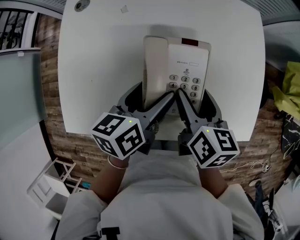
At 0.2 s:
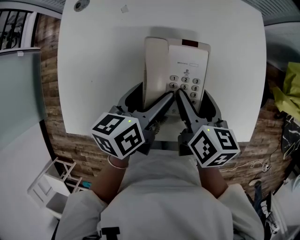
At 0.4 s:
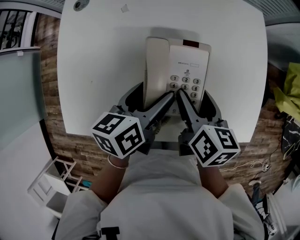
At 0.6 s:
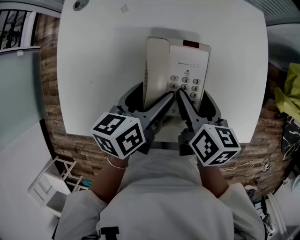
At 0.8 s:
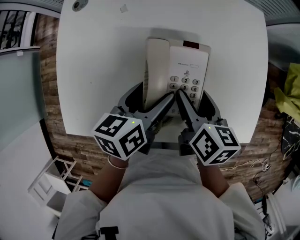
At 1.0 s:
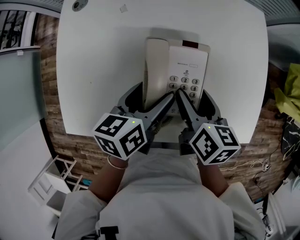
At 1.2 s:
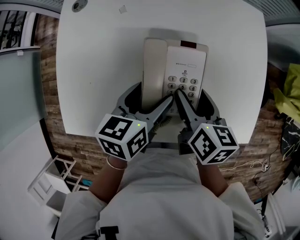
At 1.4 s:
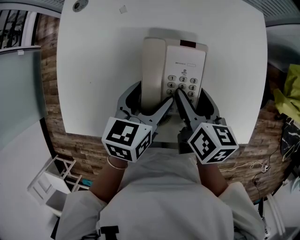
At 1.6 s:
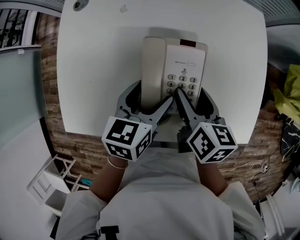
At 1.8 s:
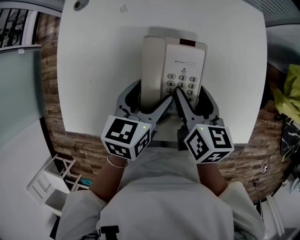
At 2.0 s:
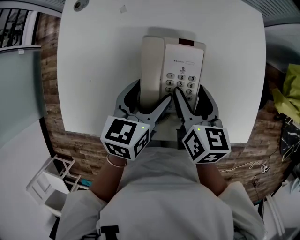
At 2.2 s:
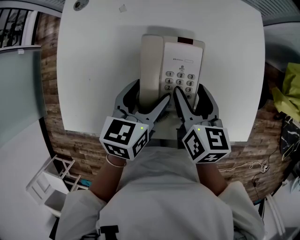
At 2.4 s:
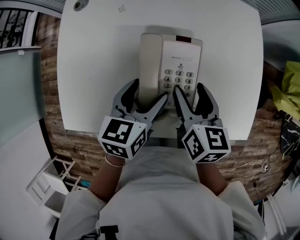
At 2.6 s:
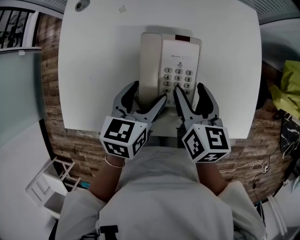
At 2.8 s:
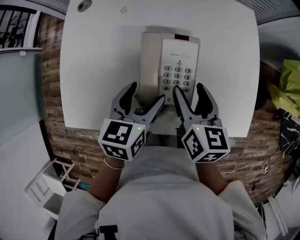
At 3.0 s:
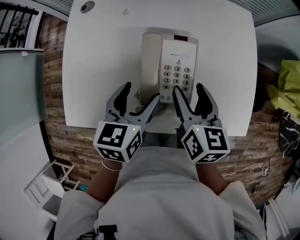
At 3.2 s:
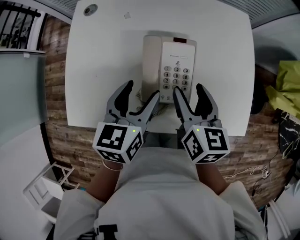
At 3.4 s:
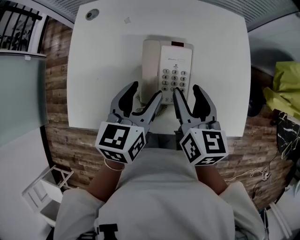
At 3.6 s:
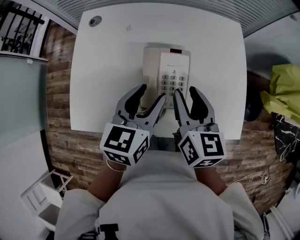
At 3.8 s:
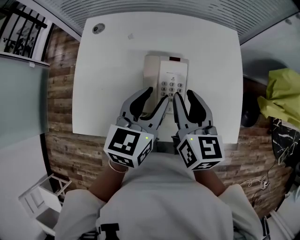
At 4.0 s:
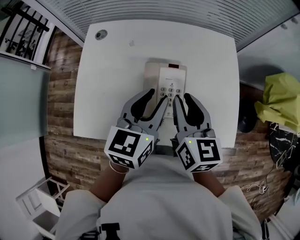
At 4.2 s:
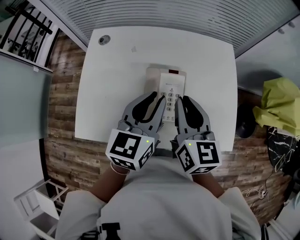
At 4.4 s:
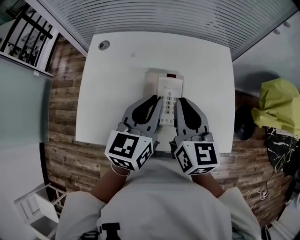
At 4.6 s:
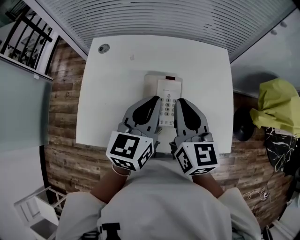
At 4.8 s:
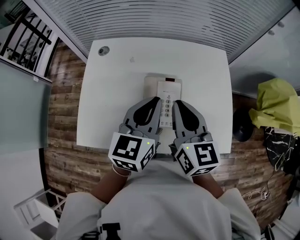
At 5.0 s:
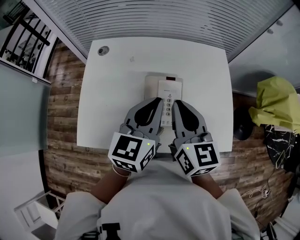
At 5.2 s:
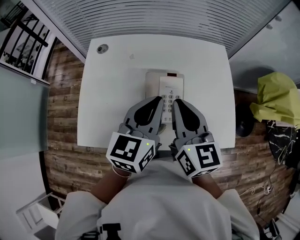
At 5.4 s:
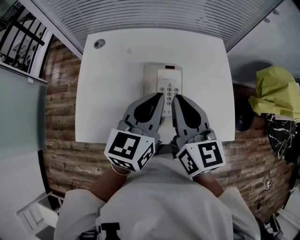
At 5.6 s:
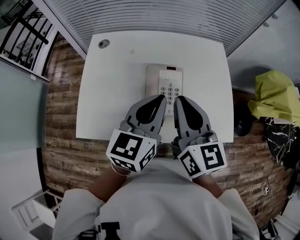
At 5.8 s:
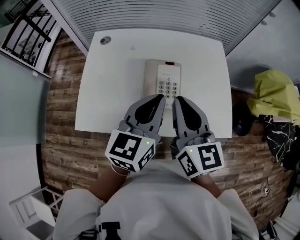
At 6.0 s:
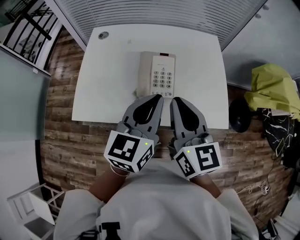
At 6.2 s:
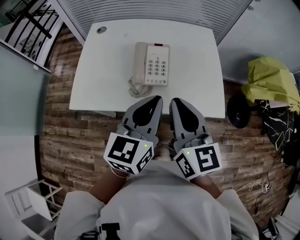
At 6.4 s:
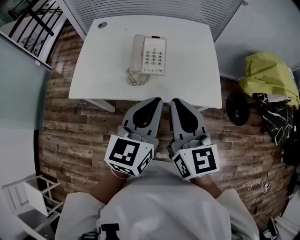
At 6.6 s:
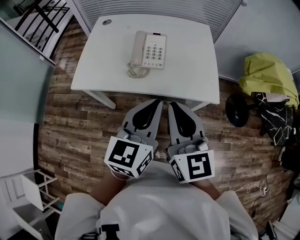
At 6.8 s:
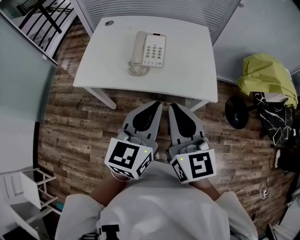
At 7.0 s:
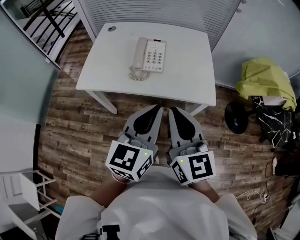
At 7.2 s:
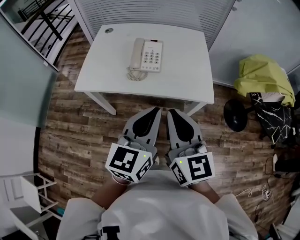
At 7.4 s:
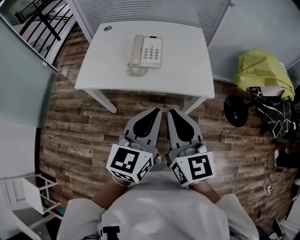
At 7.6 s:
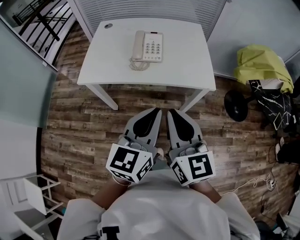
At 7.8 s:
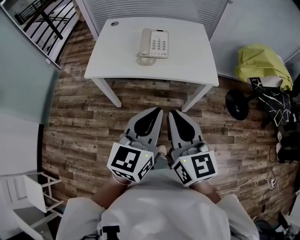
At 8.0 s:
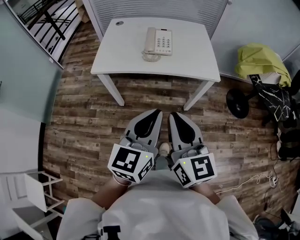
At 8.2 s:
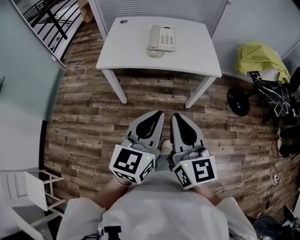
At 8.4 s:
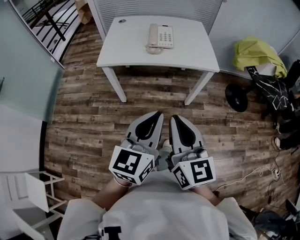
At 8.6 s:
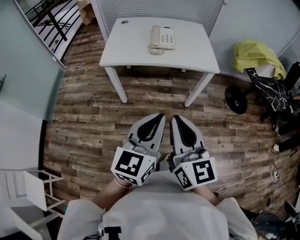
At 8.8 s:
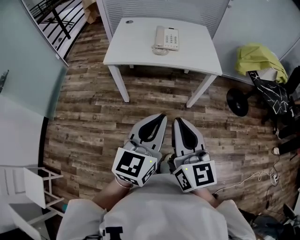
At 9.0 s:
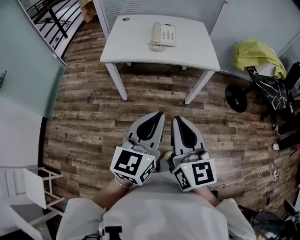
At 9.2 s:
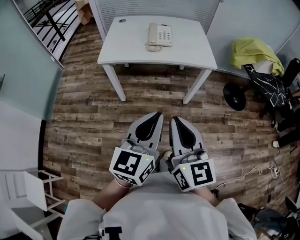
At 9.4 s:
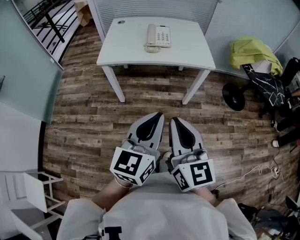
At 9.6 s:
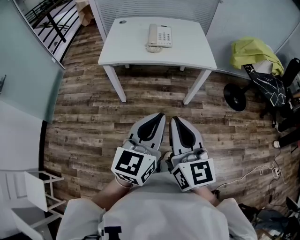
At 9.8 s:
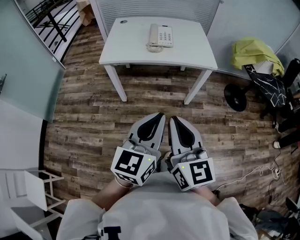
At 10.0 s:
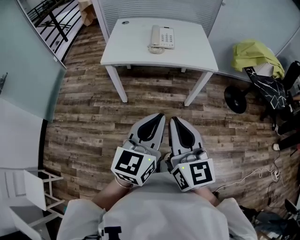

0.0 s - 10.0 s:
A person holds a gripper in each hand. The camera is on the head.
0.0 s - 1.4 s: The grippers stay close to where they were, moving slightly.
1.4 s - 2.8 s: There are only small adjustments of the grippers.
2.8 s - 4.2 s: The two grippers go approximately 15 cm upward. The right gripper closes, while the left gripper changes its angle by about 20 degrees, and closes.
4.2 s - 5.8 s: The left gripper moves backward, about 5 cm; the right gripper shifts roughly 10 cm backward and upward.
5.8 s - 7.2 s: Both grippers travel together backward, roughly 25 cm.
7.2 s - 8.6 s: The two grippers go about 25 cm backward.
8.6 s - 10.0 s: There are only small adjustments of the grippers.

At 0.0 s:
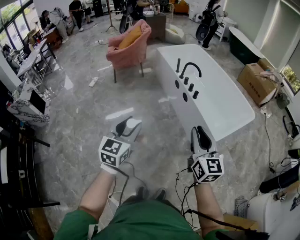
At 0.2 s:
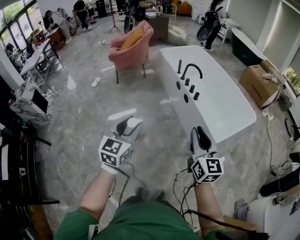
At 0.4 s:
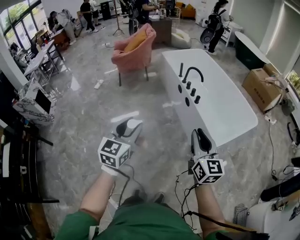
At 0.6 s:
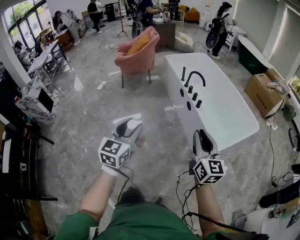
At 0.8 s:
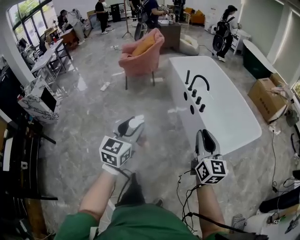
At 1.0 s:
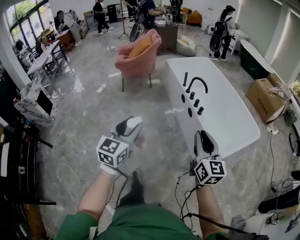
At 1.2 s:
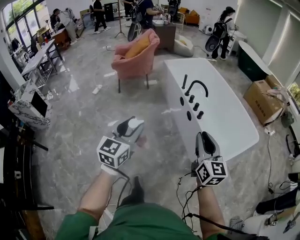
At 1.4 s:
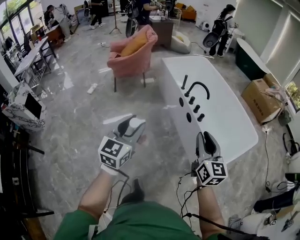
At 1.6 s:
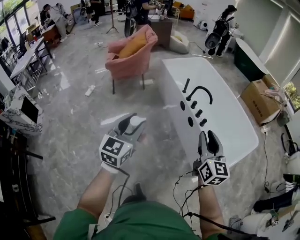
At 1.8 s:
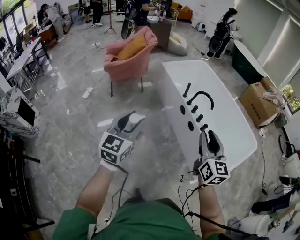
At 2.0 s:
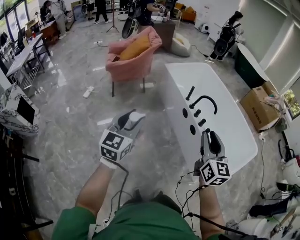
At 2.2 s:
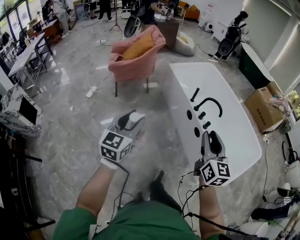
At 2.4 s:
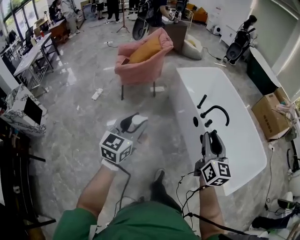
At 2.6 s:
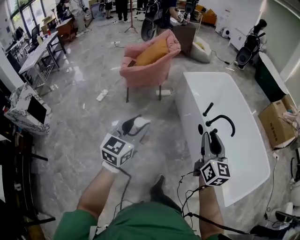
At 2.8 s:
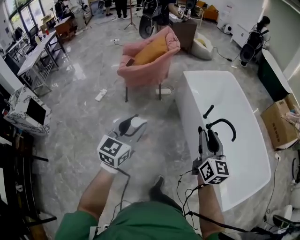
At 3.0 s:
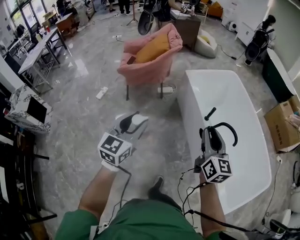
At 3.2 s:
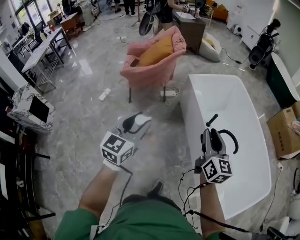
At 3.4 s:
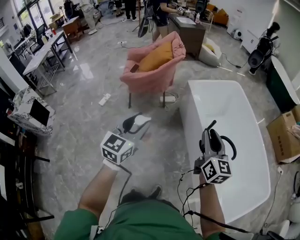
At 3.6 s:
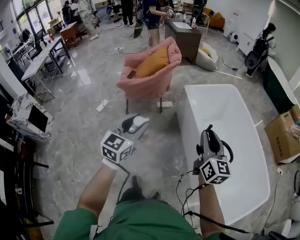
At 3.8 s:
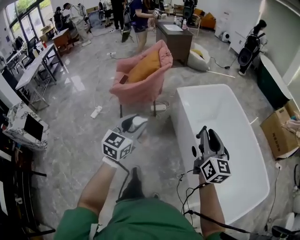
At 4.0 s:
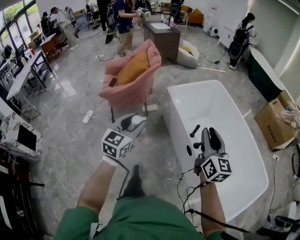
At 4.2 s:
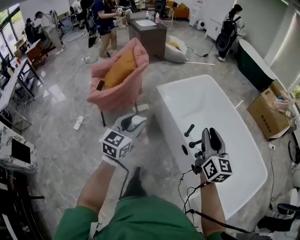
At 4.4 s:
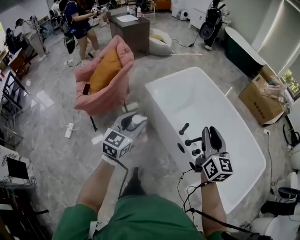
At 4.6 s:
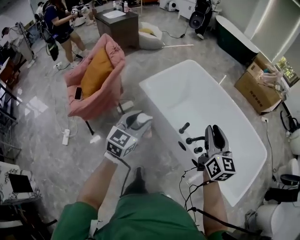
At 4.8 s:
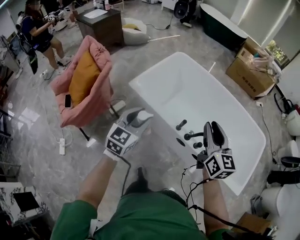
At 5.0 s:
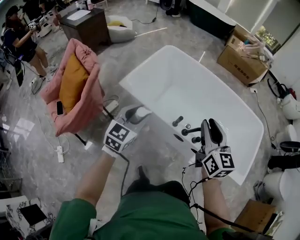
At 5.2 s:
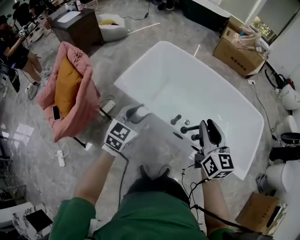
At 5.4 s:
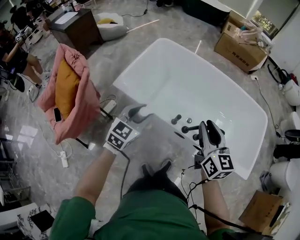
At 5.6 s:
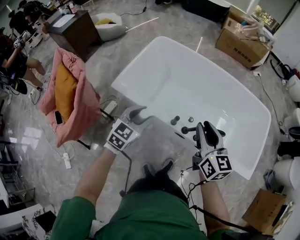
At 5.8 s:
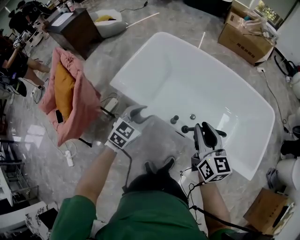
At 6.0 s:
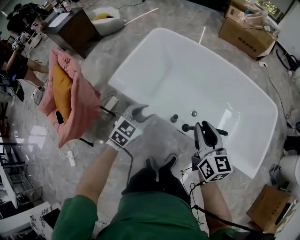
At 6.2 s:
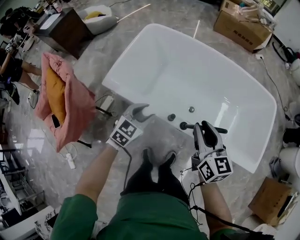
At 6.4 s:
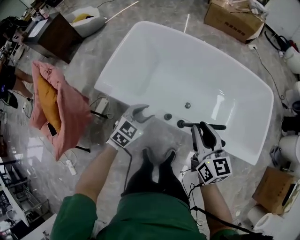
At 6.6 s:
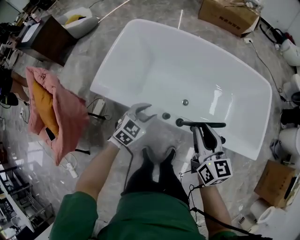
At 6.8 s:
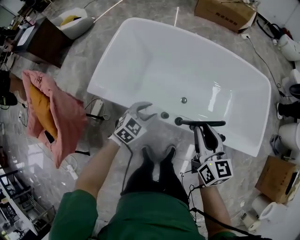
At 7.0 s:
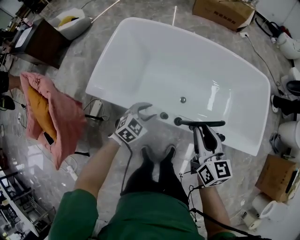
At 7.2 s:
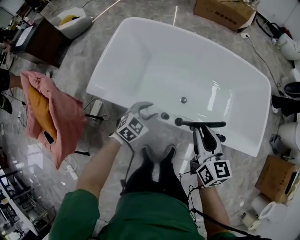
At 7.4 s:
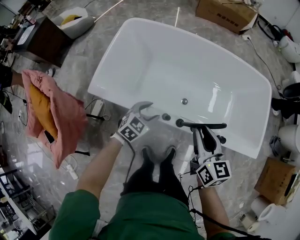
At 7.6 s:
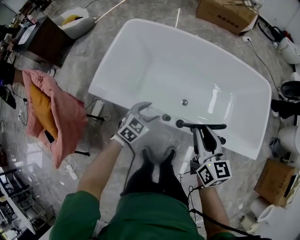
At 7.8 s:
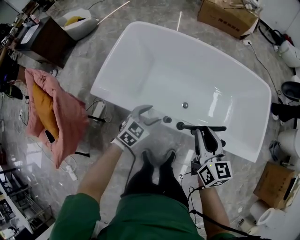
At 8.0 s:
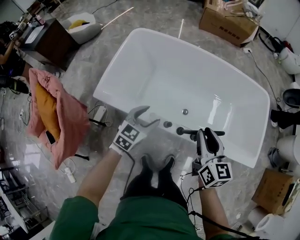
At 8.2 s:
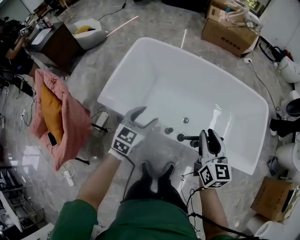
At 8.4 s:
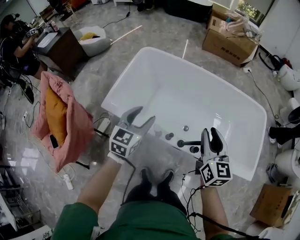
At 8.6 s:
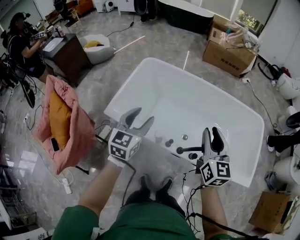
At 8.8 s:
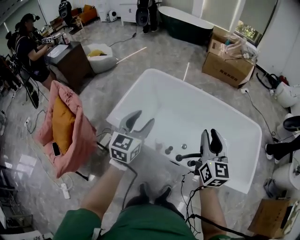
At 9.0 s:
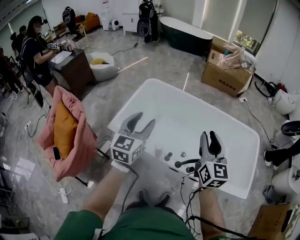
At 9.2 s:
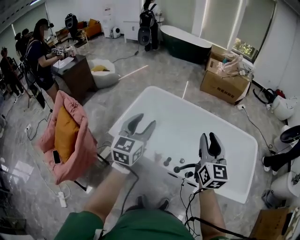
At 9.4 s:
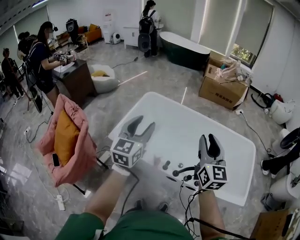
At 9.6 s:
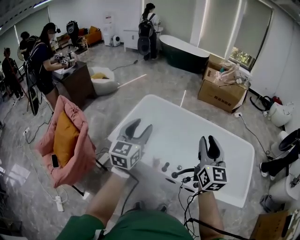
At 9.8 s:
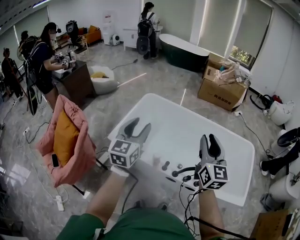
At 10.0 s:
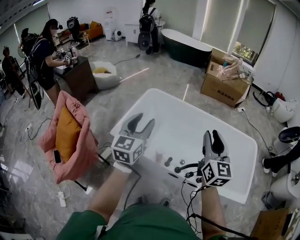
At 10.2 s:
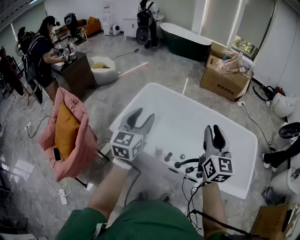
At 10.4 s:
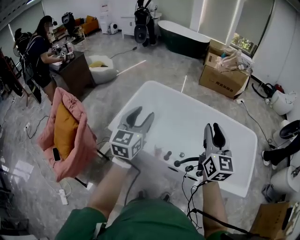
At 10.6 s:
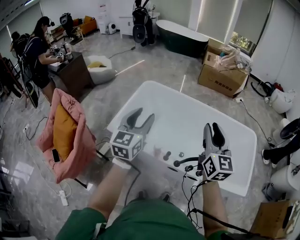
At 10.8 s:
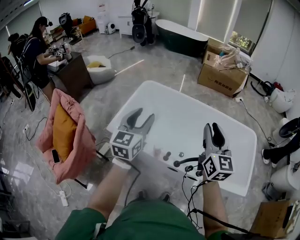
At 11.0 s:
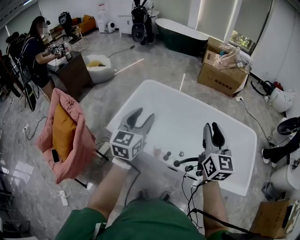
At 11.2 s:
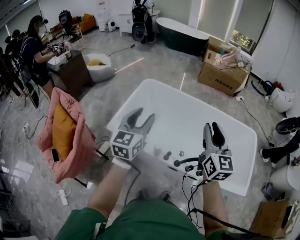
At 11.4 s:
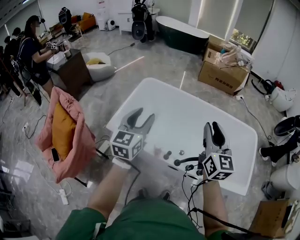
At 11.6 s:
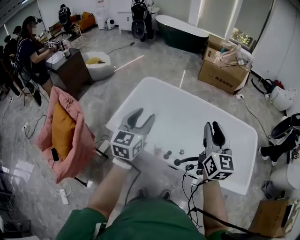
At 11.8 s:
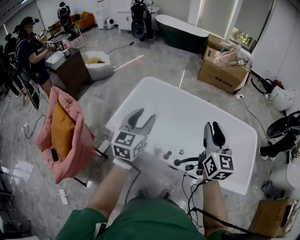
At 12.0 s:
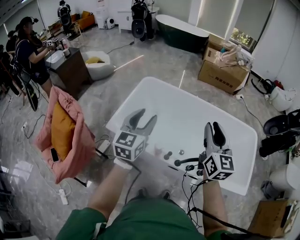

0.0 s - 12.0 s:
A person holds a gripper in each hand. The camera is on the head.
0.0 s - 1.6 s: Both grippers travel together forward, approximately 30 cm.
1.6 s - 3.0 s: Both grippers are carried forward, about 50 cm.
3.0 s - 4.4 s: The grippers both shift forward by roughly 30 cm. The left gripper turns by approximately 20 degrees.
4.4 s - 6.0 s: The right gripper changes place by some 25 cm, and swivels some 20 degrees. Meanwhile the left gripper shifts by about 40 cm, and changes its angle by roughly 40 degrees.
6.0 s - 7.6 s: The right gripper shifts roughly 5 cm downward. Meanwhile the left gripper travels downward and forward by roughly 15 cm, and opens.
7.6 s - 9.0 s: The right gripper shifts roughly 25 cm upward, and turns by about 20 degrees; the left gripper heads upward, covering some 40 cm, and tilts its fingers roughly 30 degrees upward.
9.0 s - 10.4 s: The right gripper shifts by roughly 5 cm.
10.4 s - 12.0 s: The left gripper changes place by roughly 5 cm.

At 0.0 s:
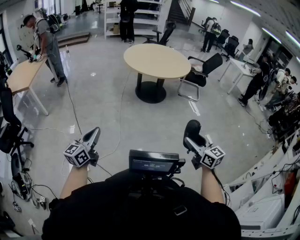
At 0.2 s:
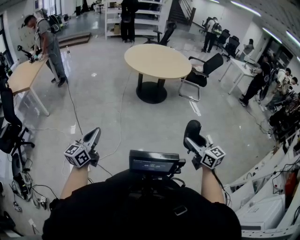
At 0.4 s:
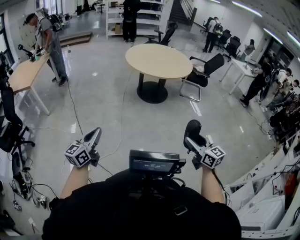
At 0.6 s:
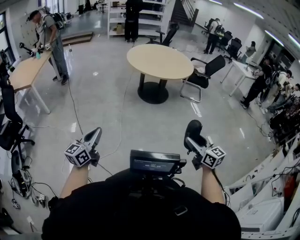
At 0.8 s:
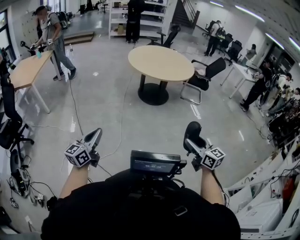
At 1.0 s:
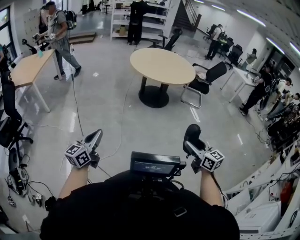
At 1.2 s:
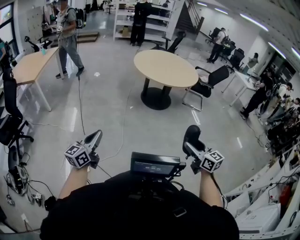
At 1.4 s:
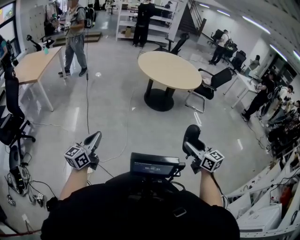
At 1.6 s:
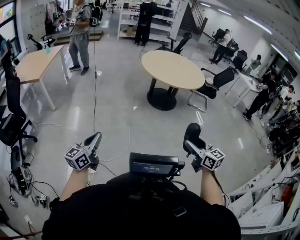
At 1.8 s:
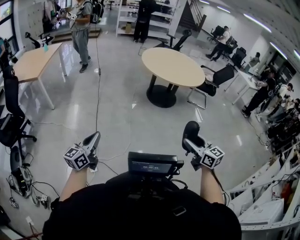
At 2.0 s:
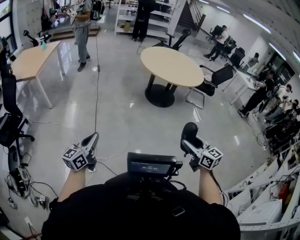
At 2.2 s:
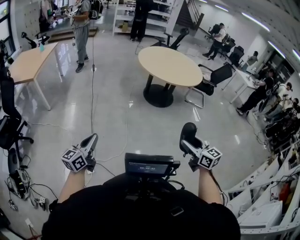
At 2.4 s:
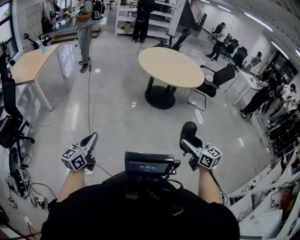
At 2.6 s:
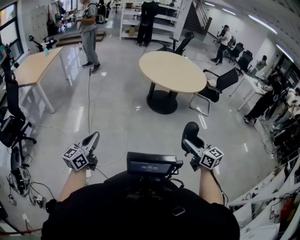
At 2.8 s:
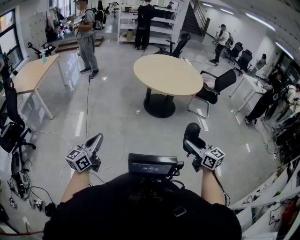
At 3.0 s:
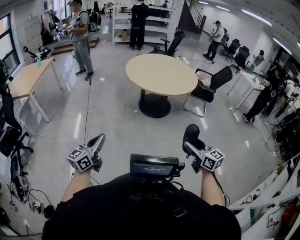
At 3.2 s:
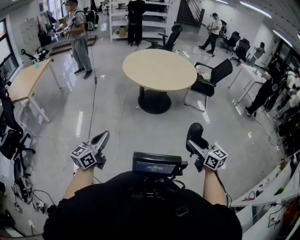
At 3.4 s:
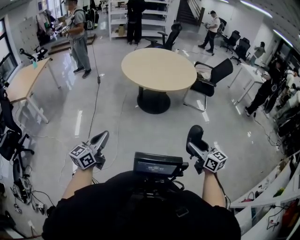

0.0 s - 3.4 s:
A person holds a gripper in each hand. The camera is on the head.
0.0 s - 1.6 s: The grippers both shift to the left by roughly 15 cm.
1.6 s - 3.4 s: The two grippers go approximately 35 cm to the right and forward.
